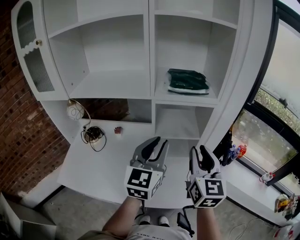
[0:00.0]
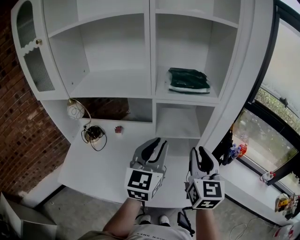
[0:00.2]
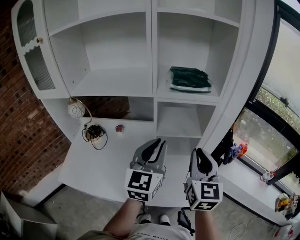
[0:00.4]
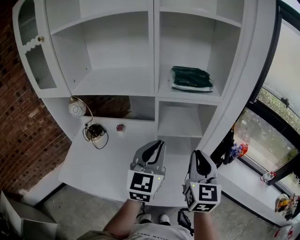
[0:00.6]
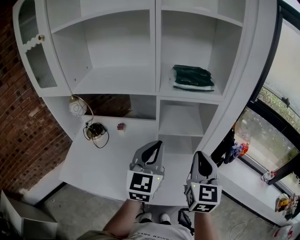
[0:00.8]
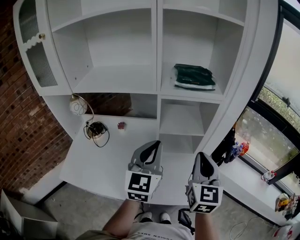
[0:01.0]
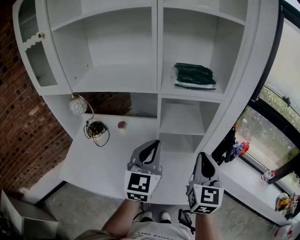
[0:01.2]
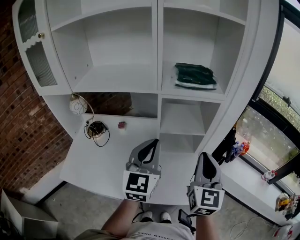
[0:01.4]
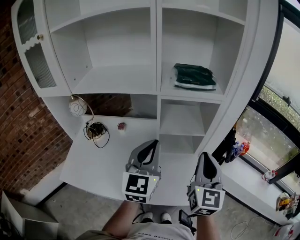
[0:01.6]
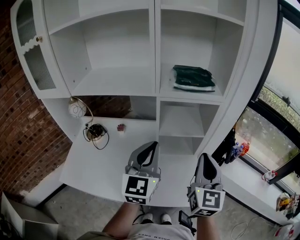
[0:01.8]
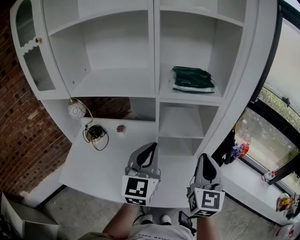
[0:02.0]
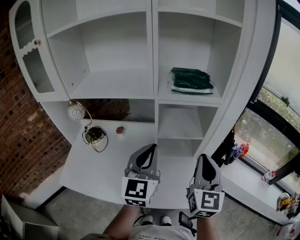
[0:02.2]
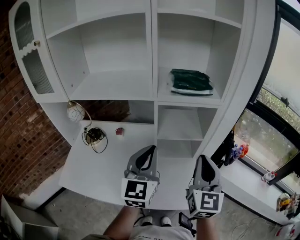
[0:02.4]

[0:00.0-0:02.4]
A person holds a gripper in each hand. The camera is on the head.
0:00.0 to 0:01.2: The left gripper closes its fingers.
0:01.2 to 0:02.4: There are only small adjustments of the grippers.

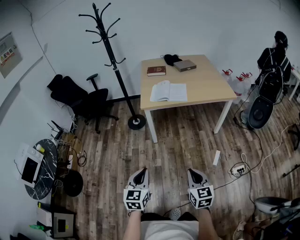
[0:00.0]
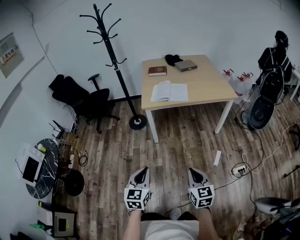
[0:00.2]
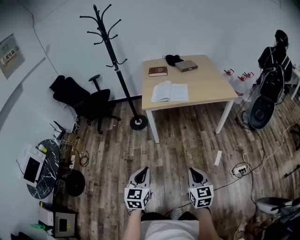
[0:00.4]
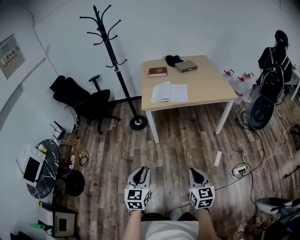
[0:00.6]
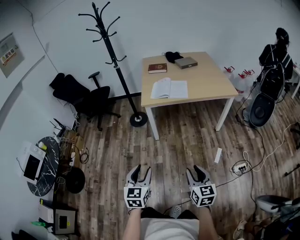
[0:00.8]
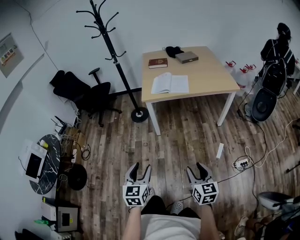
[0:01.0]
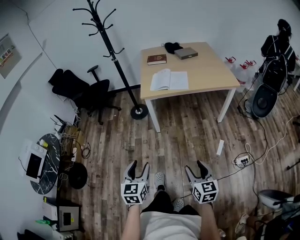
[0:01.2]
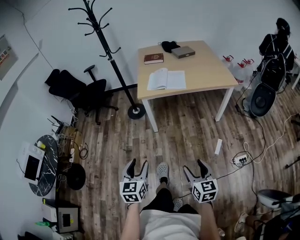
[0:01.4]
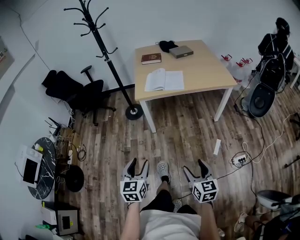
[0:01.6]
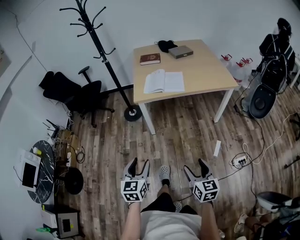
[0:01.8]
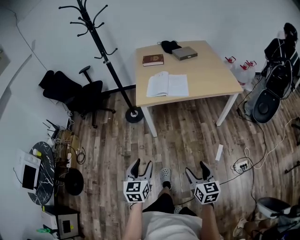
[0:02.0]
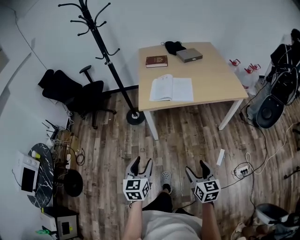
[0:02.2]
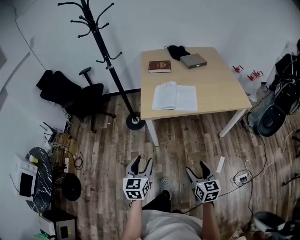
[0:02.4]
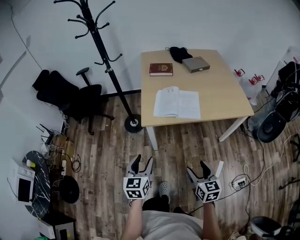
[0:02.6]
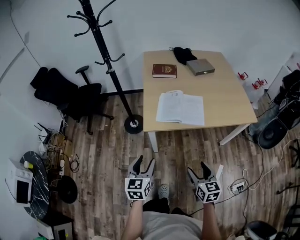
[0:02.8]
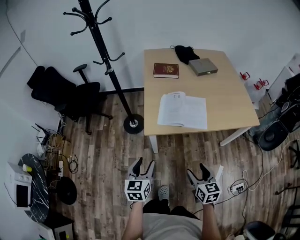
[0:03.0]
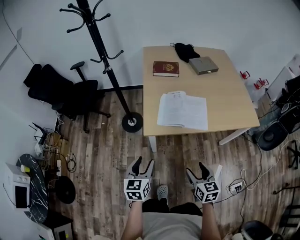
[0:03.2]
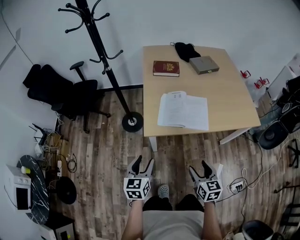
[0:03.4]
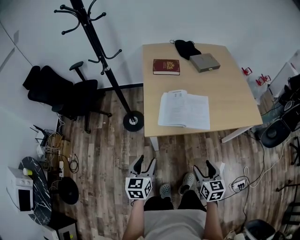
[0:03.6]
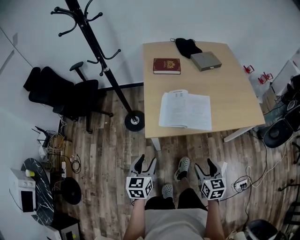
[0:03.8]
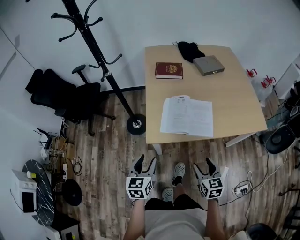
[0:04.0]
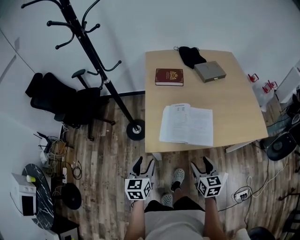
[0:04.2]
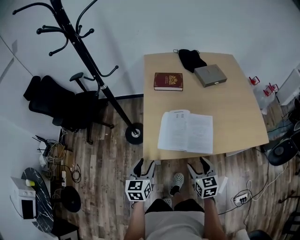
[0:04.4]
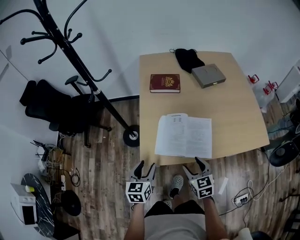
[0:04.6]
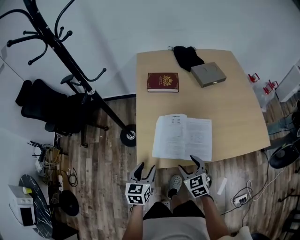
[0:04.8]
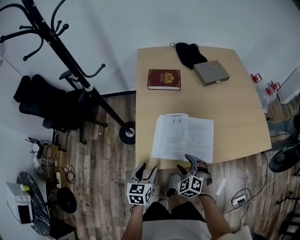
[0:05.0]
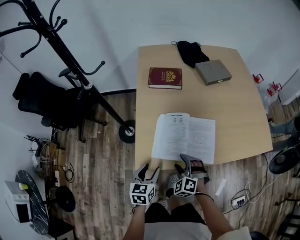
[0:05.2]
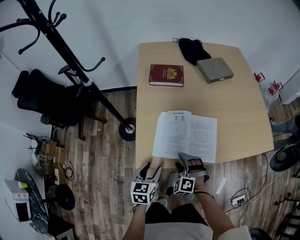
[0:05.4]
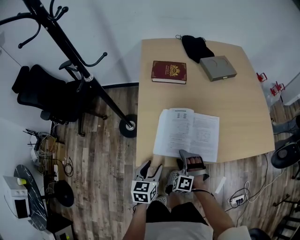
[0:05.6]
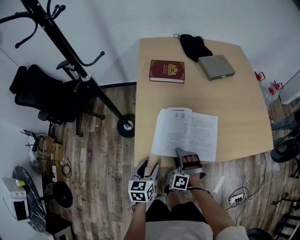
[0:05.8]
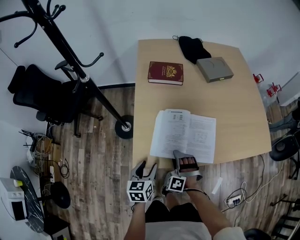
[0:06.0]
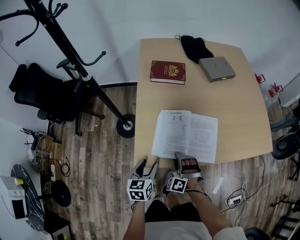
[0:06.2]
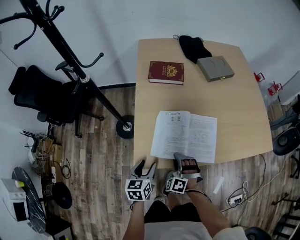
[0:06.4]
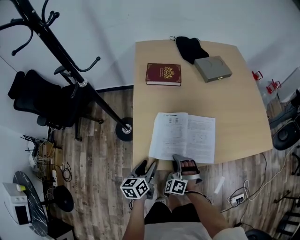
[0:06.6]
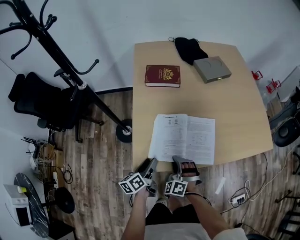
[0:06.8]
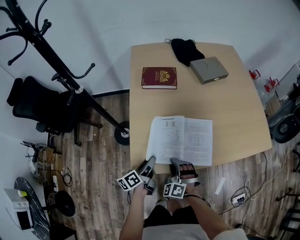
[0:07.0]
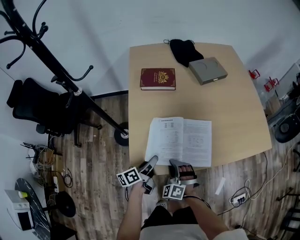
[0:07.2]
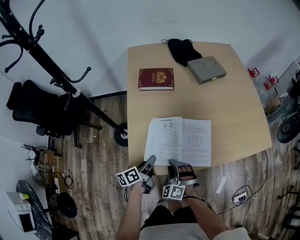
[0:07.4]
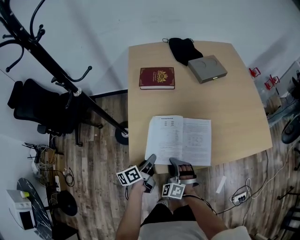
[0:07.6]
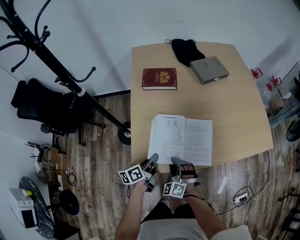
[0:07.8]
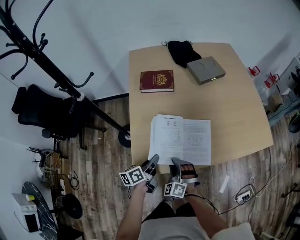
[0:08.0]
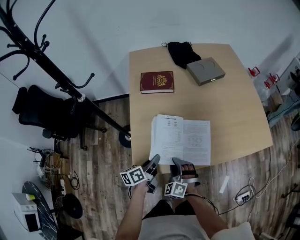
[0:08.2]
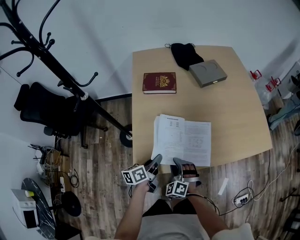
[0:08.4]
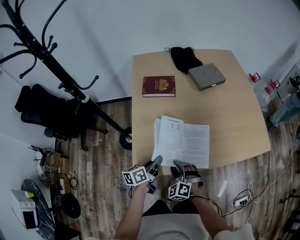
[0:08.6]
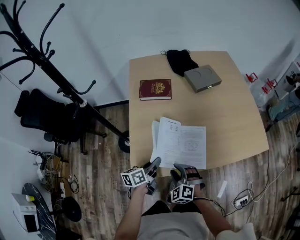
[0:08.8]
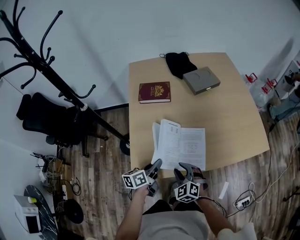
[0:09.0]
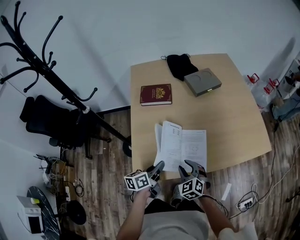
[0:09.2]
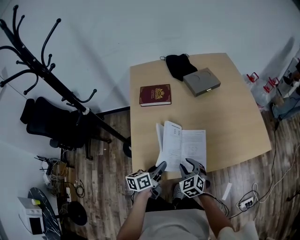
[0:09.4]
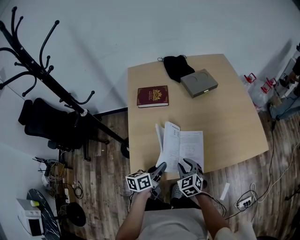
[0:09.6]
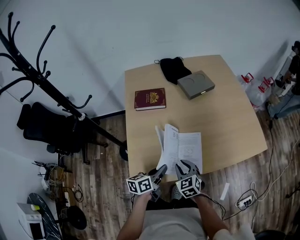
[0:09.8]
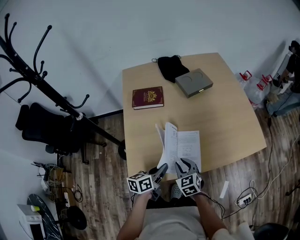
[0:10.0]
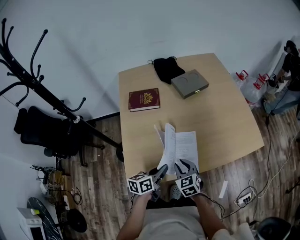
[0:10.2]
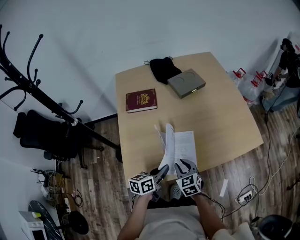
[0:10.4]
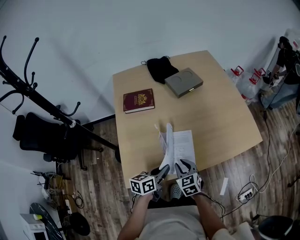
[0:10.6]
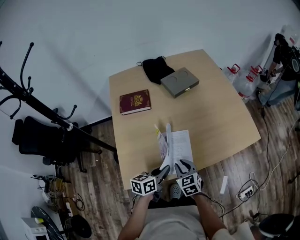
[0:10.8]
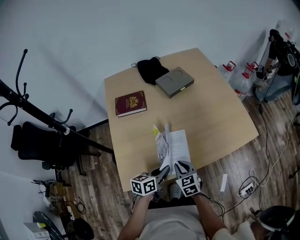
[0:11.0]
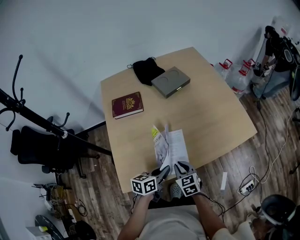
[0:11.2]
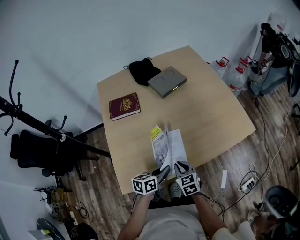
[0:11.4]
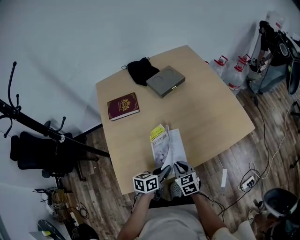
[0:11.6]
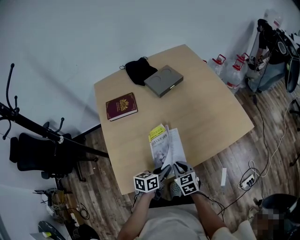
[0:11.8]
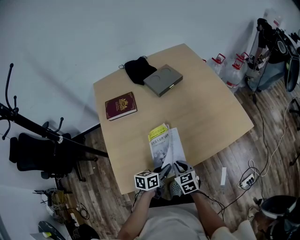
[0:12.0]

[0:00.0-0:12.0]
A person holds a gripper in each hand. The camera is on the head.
0:00.0 to 0:01.6: The right gripper ends up about 5 cm from where it was, and opens its fingers, while the left gripper opens.
0:01.6 to 0:03.0: Both grippers are carried forward, approximately 40 cm.
0:03.0 to 0:04.4: The two grippers go about 20 cm forward.
0:04.4 to 0:06.0: The left gripper travels downward and forward by approximately 15 cm; the right gripper is displaced downward, forward and to the left by approximately 20 cm, and rolls counterclockwise, seen from behind, by about 80 degrees.
0:06.0 to 0:07.6: The left gripper is displaced forward by some 10 cm, rotates about 40 degrees, and closes.
0:07.6 to 0:09.0: Both grippers travel together upward and to the right, about 10 cm. The right gripper changes its angle by about 20 degrees.
0:09.0 to 0:10.4: The right gripper is displaced to the right and forward by about 10 cm, and swivels roughly 30 degrees. Meanwhile the left gripper travels to the right by roughly 10 cm.
0:10.4 to 0:12.0: The right gripper goes roughly 5 cm to the right. Meanwhile the left gripper heads to the right and downward, covering roughly 10 cm.

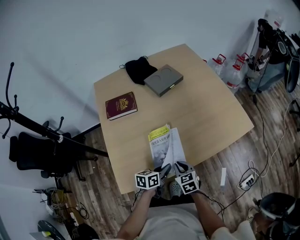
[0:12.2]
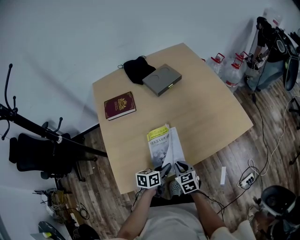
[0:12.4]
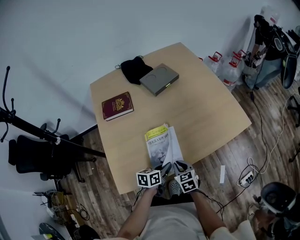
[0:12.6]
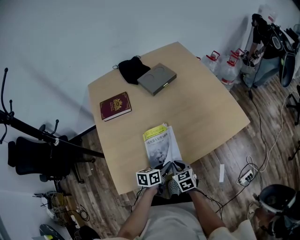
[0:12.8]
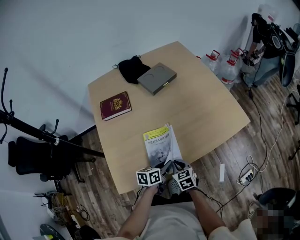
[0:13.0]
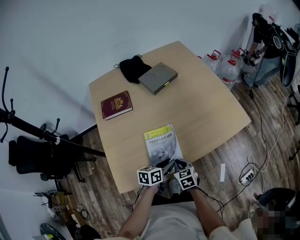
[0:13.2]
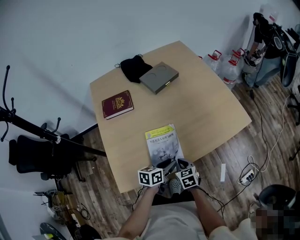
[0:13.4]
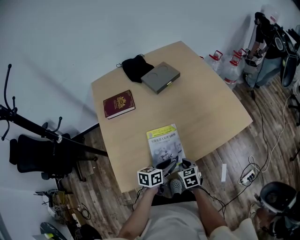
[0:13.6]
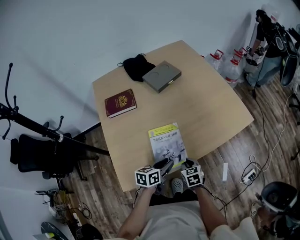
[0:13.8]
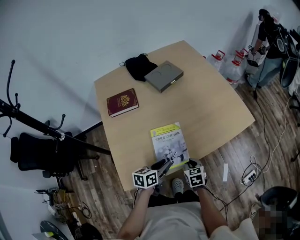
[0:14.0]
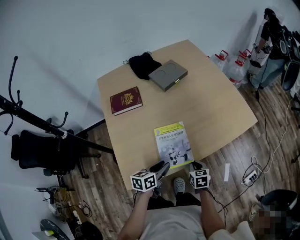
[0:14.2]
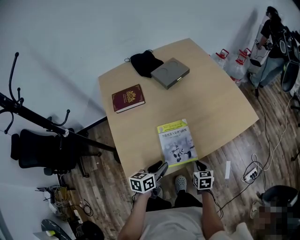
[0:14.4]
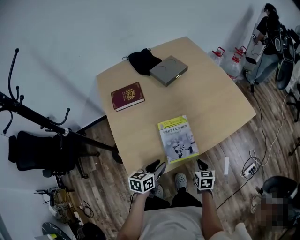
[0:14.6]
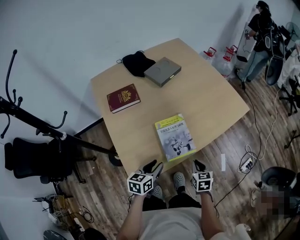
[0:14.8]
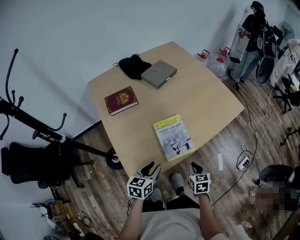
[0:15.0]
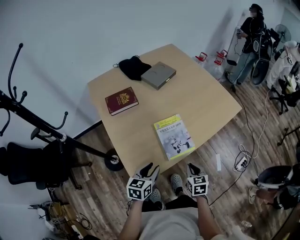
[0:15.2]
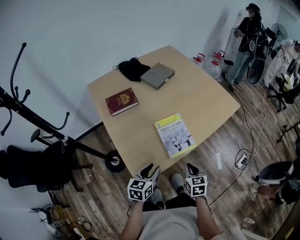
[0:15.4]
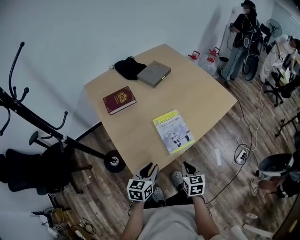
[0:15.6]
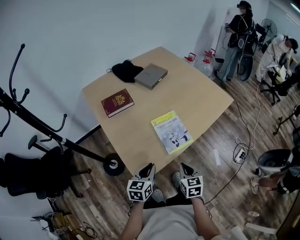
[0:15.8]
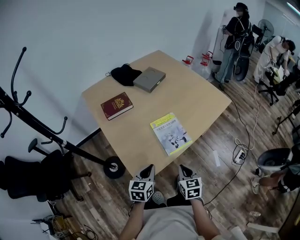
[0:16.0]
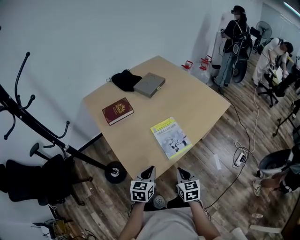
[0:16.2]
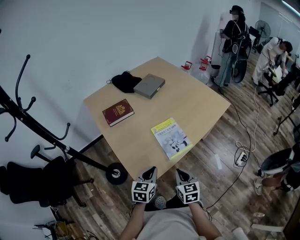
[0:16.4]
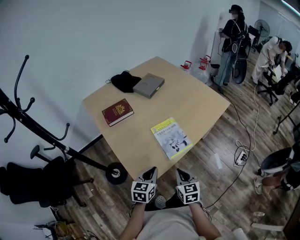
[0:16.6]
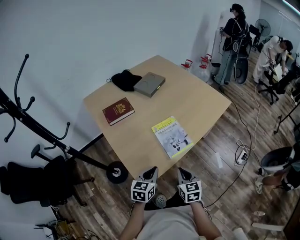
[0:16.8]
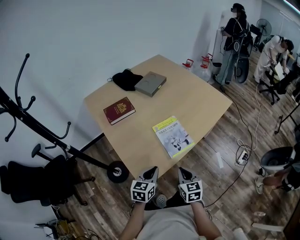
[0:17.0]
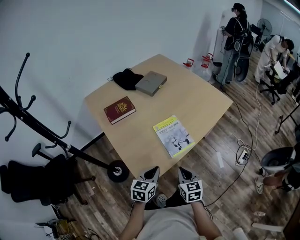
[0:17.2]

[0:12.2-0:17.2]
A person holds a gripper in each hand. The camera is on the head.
0:12.2 to 0:13.8: The left gripper opens its fingers, while the right gripper moves about 5 cm.
0:13.8 to 0:15.6: The left gripper goes some 20 cm to the left, backward and upward, and changes its angle by about 20 degrees. Meanwhile the right gripper is displaced backward, upward and to the left by approximately 20 cm, and swivels some 20 degrees.
0:15.6 to 0:17.2: The right gripper changes place by about 5 cm. Meanwhile the left gripper closes.

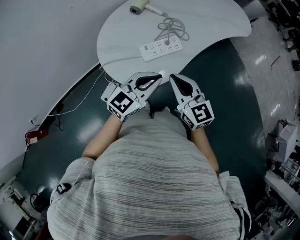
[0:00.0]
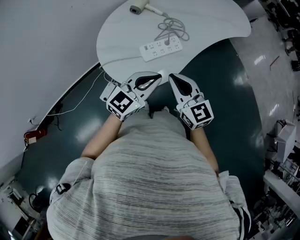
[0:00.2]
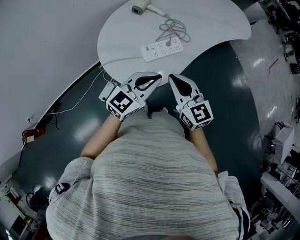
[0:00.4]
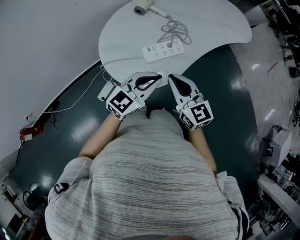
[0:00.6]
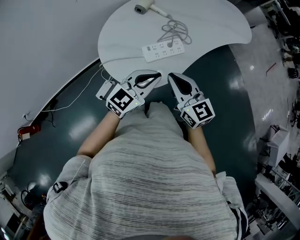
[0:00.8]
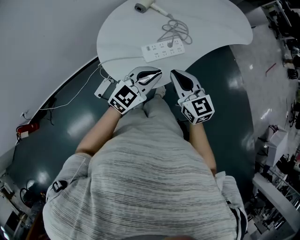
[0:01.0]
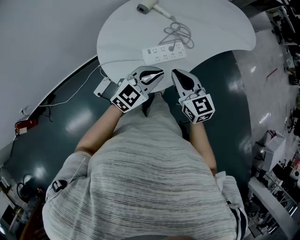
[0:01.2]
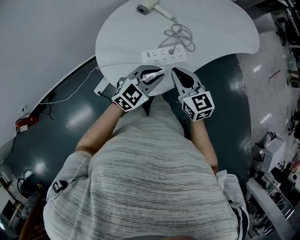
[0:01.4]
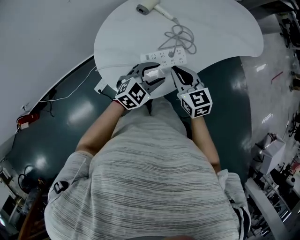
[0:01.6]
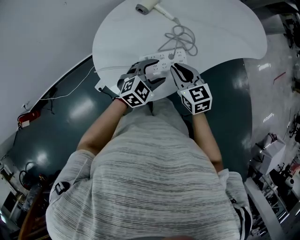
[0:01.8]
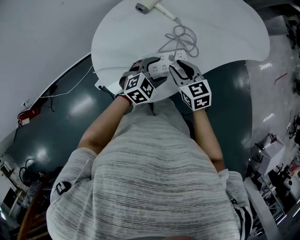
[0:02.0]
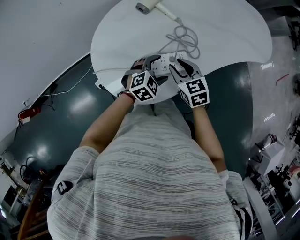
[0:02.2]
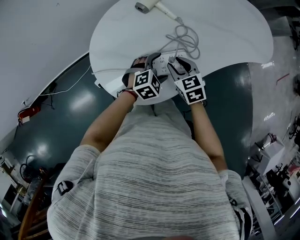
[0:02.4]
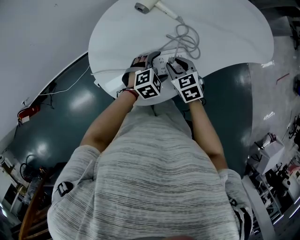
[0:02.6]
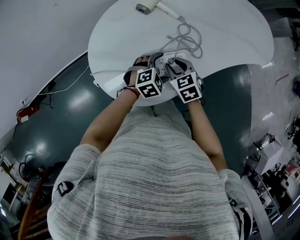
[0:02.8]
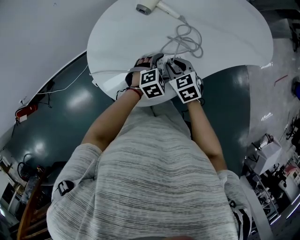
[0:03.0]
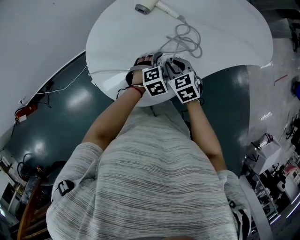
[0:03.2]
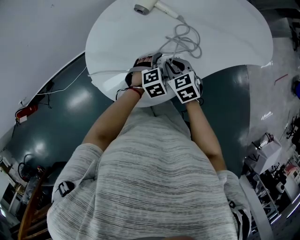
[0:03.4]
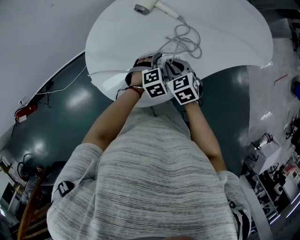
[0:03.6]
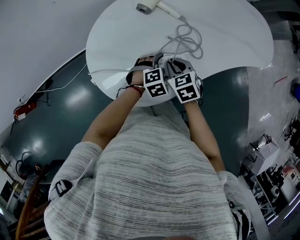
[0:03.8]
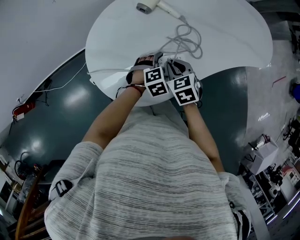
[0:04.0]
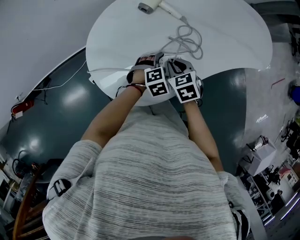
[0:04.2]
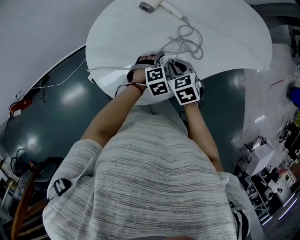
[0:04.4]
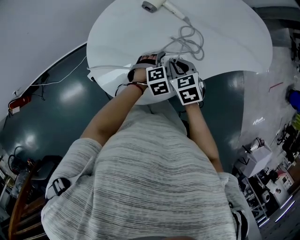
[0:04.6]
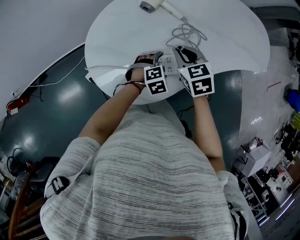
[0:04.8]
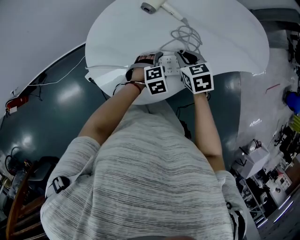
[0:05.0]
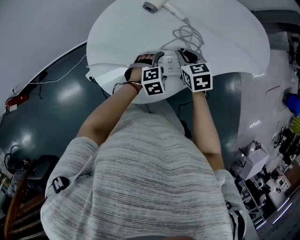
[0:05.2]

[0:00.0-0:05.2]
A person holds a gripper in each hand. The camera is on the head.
0:00.0 to 0:01.8: The grippers both shift forward and downward by approximately 20 cm. The right gripper changes its angle by some 20 degrees, while the left gripper rotates some 30 degrees, and opens up.
0:01.8 to 0:03.4: The right gripper travels downward by roughly 10 cm, and rotates approximately 20 degrees, while the left gripper travels downward and forward by roughly 10 cm, turns by approximately 20 degrees, and opens its fingers.
0:03.4 to 0:05.2: The right gripper is displaced forward by roughly 5 cm.
